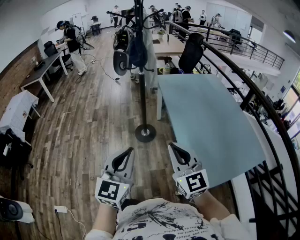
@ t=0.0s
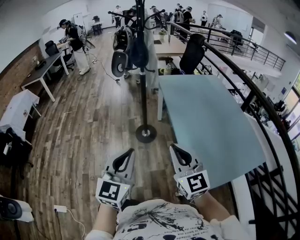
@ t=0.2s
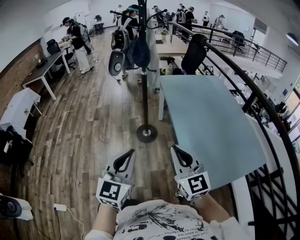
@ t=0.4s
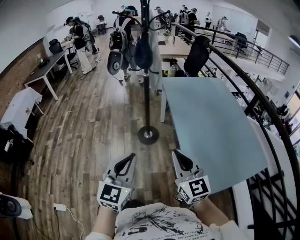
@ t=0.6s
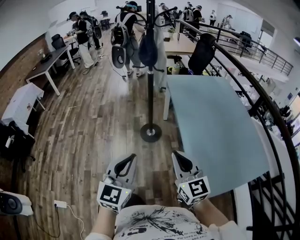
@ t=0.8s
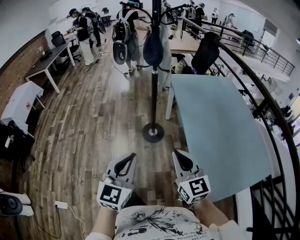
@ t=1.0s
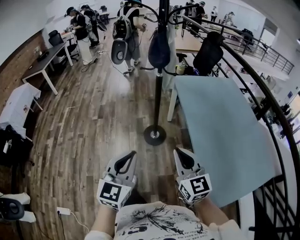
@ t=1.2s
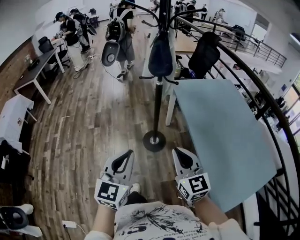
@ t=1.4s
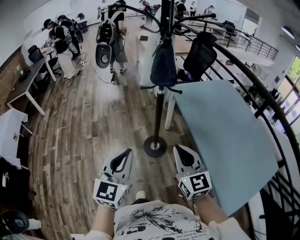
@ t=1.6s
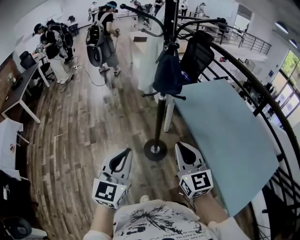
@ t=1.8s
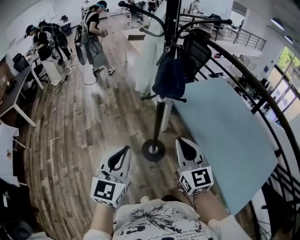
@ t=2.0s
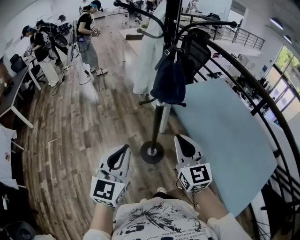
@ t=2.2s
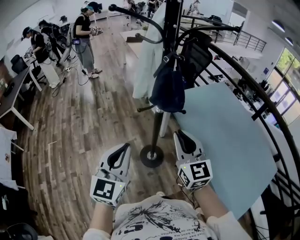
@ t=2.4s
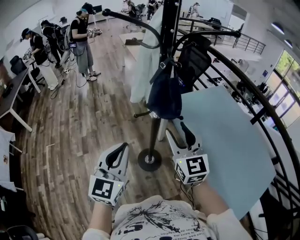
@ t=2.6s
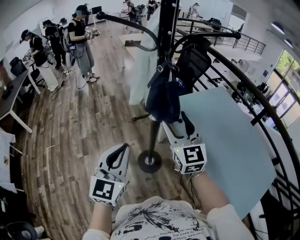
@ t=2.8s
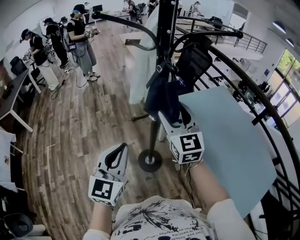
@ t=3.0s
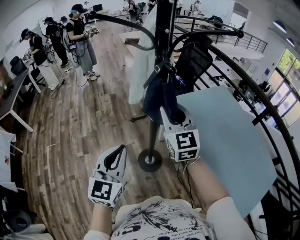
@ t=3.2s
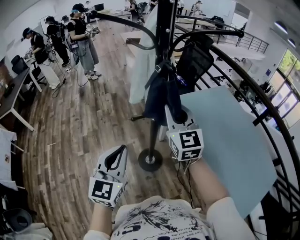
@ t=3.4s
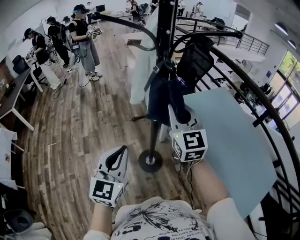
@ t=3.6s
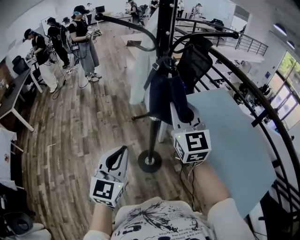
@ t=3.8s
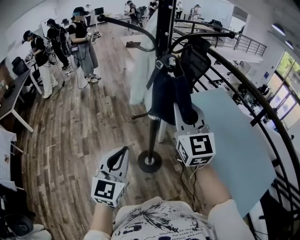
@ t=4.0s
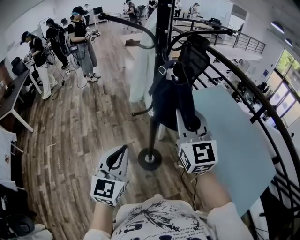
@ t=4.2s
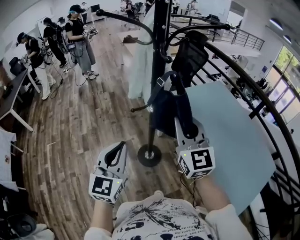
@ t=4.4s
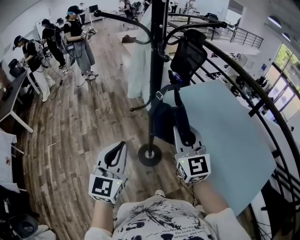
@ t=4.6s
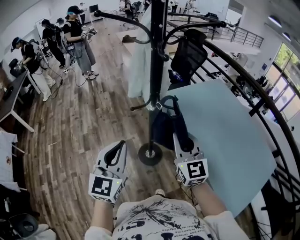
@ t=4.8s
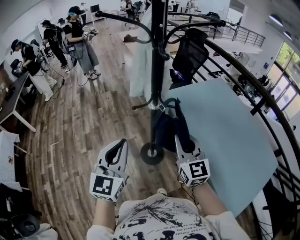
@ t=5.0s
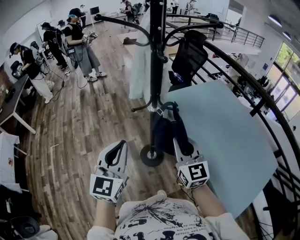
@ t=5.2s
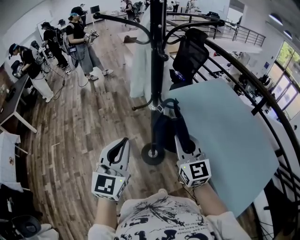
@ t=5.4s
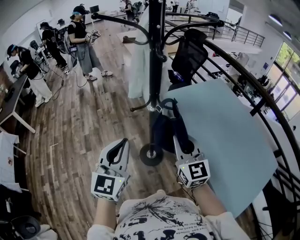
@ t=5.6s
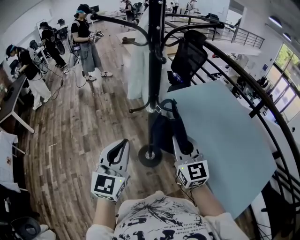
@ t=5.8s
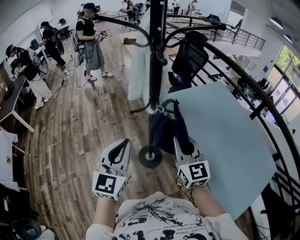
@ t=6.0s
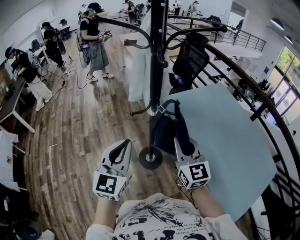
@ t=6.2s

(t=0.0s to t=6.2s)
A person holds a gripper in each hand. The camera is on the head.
t=0.0s - t=1.6s: Both grippers move forward and to the left, approximately 35 cm.
t=1.6s - t=3.2s: The two grippers go some 25 cm forward. The right gripper opens its fingers.
t=3.2s - t=4.6s: The left gripper shifts by about 5 cm. The right gripper shifts some 15 cm backward.
t=4.6s - t=6.2s: The grippers move only a little.

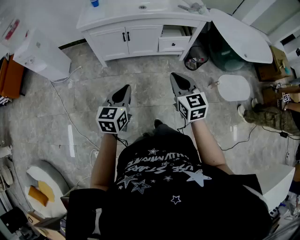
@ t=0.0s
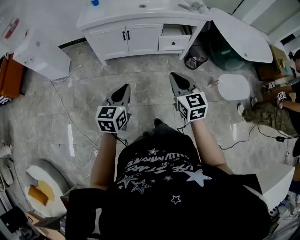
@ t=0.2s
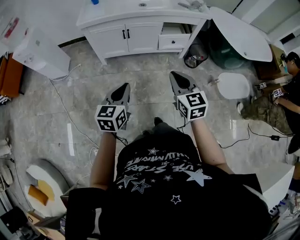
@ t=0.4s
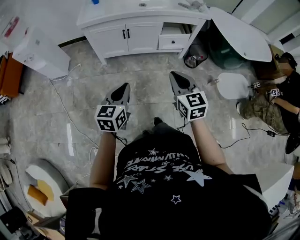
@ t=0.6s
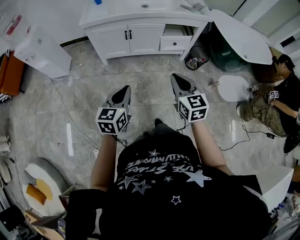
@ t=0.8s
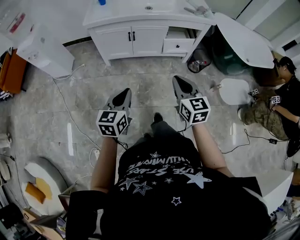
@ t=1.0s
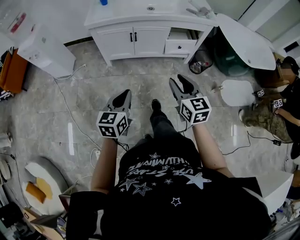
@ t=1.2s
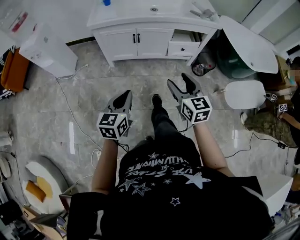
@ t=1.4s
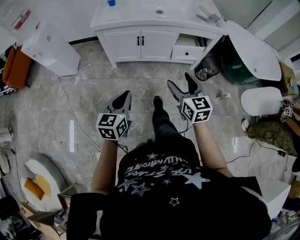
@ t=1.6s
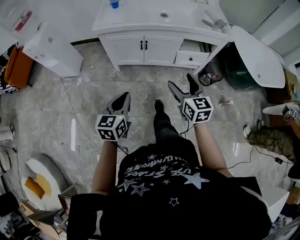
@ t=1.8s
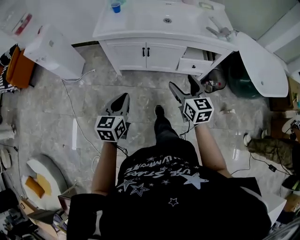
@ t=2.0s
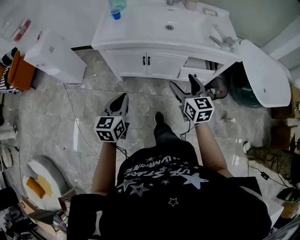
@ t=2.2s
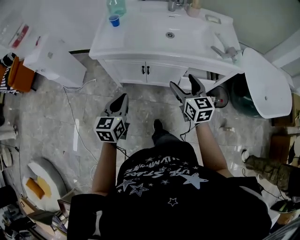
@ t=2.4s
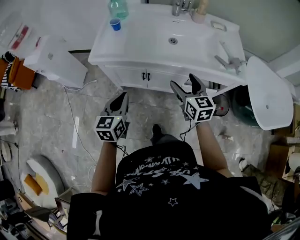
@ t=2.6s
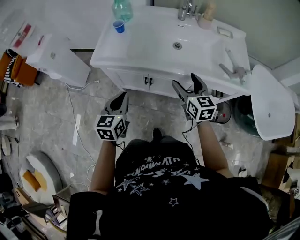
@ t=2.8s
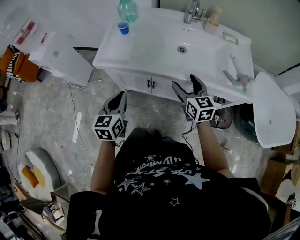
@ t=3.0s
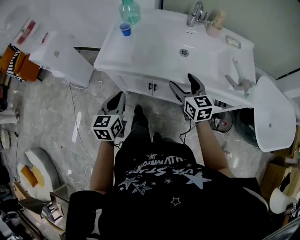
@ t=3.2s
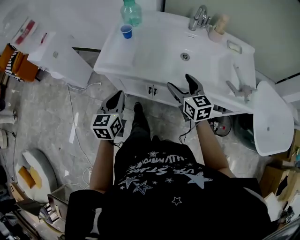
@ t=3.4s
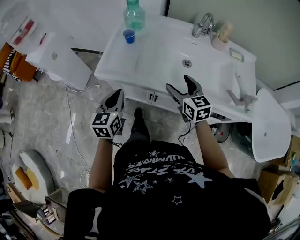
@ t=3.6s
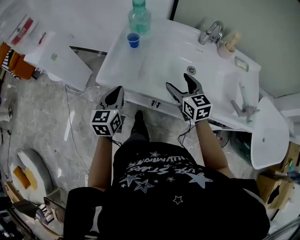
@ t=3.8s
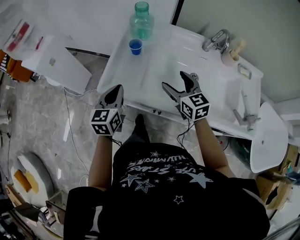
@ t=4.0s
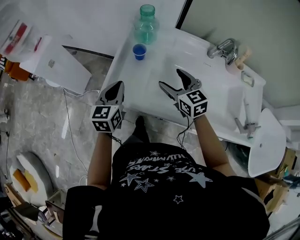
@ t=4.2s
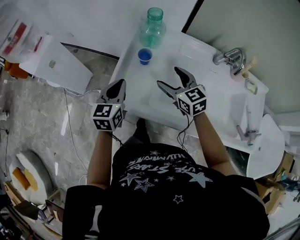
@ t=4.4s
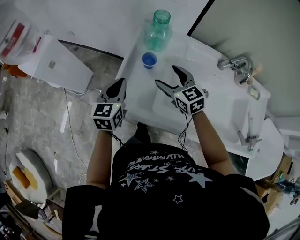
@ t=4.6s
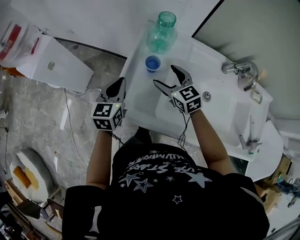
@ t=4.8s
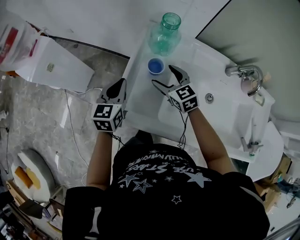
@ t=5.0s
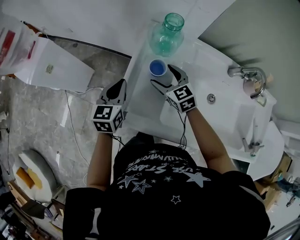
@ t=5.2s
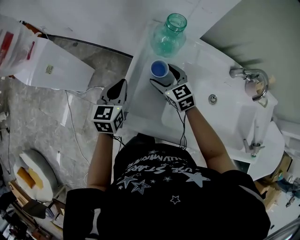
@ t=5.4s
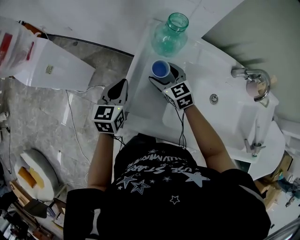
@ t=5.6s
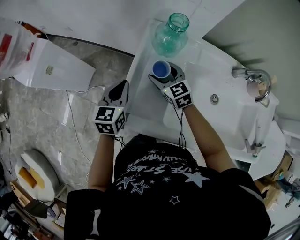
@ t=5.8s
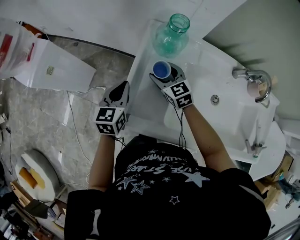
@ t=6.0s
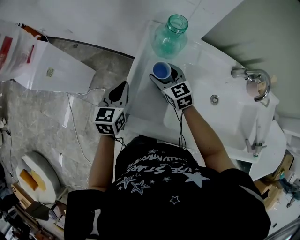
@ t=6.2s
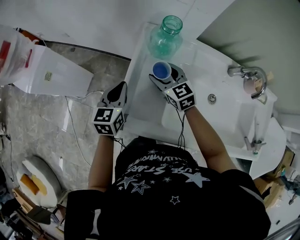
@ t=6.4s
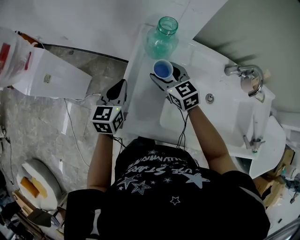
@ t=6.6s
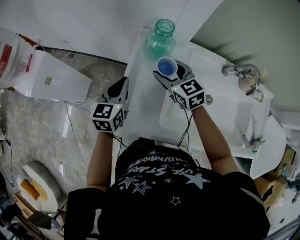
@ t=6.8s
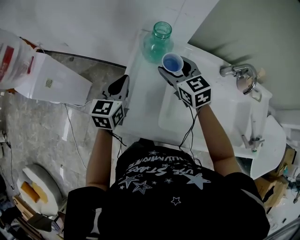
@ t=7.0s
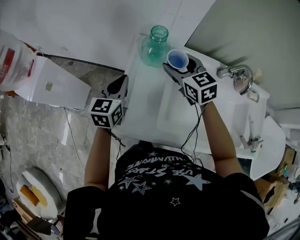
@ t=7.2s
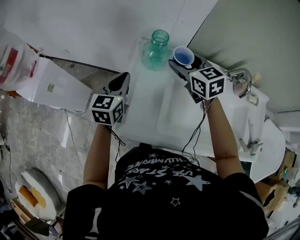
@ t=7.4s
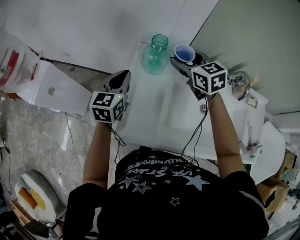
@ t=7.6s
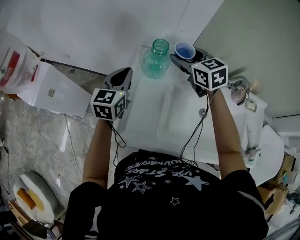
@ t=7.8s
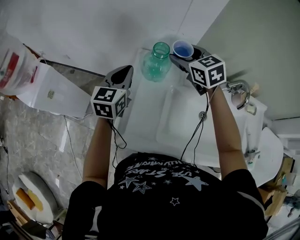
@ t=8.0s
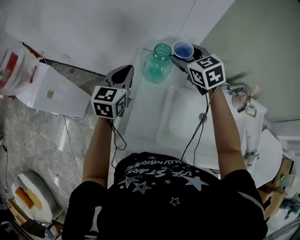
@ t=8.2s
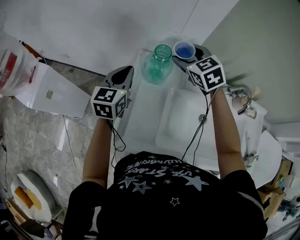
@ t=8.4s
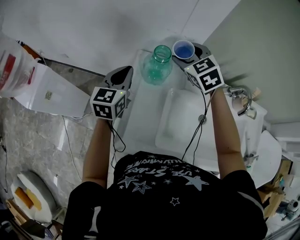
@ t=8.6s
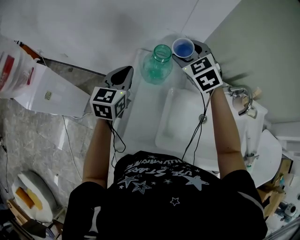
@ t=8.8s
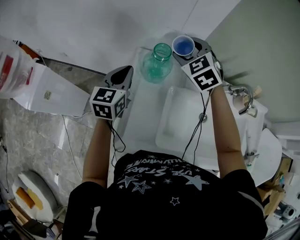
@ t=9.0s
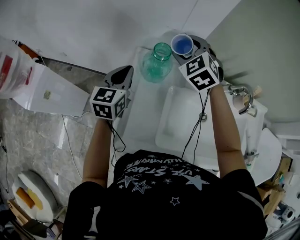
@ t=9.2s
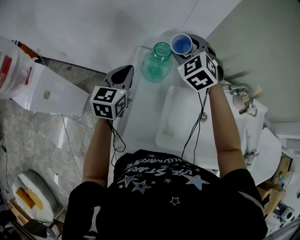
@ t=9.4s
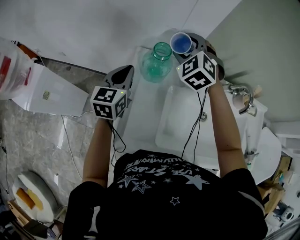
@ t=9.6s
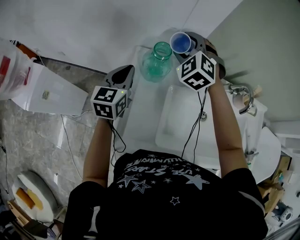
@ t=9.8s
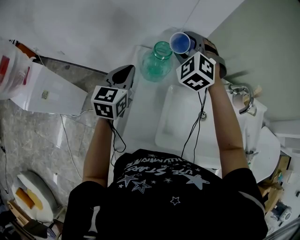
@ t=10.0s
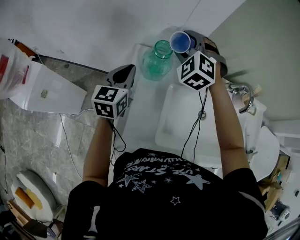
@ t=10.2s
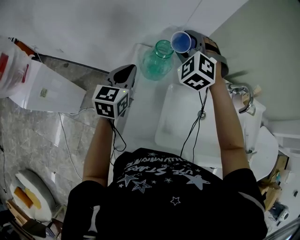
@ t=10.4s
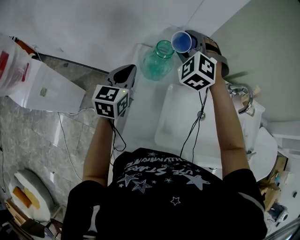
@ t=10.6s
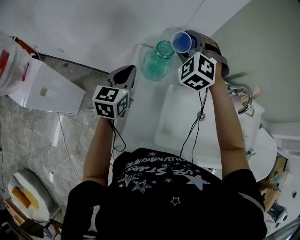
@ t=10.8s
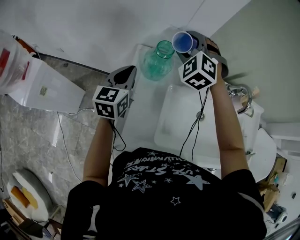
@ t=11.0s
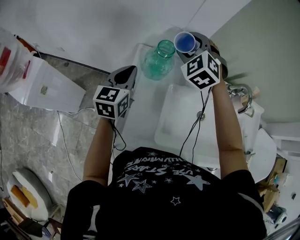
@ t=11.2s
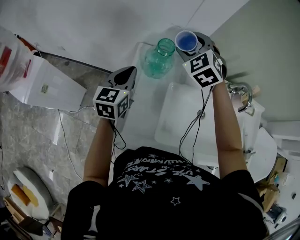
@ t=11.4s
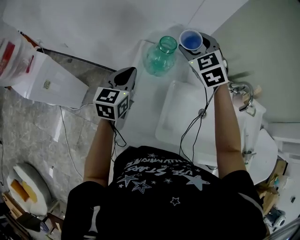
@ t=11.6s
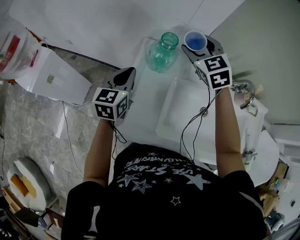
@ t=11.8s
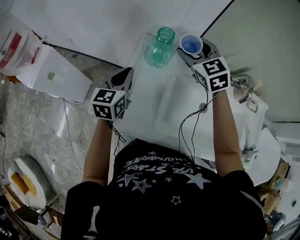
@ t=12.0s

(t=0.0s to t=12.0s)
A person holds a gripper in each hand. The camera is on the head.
t=0.0s - t=1.6s: The right gripper is displaced forward by about 5 cm, and opens. Meanwhile the left gripper moves to the left, approximately 5 cm.
t=1.6s - t=3.0s: Both grippers move forward, some 40 cm.
t=3.0s - t=4.4s: The right gripper goes roughly 35 cm forward and to the left, and swivels some 20 degrees; the left gripper moves forward, approximately 30 cm.
t=4.4s - t=6.0s: The right gripper heads forward, downward and to the left, covering approximately 20 cm. Meanwhile the left gripper shifts approximately 10 cm forward and downward.
t=6.0s - t=7.6s: The left gripper shifts approximately 15 cm upward, forward and to the right. Meanwhile the right gripper shifts approximately 25 cm upward and to the right.
t=7.6s - t=9.0s: Both grippers travel together forward, approximately 5 cm. The right gripper changes its angle by approximately 30 degrees.
t=9.0s - t=10.4s: The right gripper swivels approximately 30 degrees.
t=10.4s - t=12.0s: The two grippers go approximately 10 cm backward. The right gripper swivels about 40 degrees.

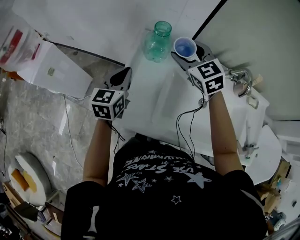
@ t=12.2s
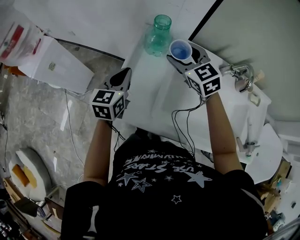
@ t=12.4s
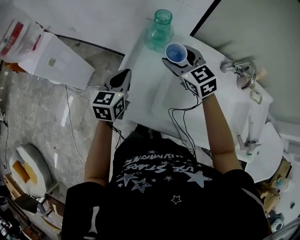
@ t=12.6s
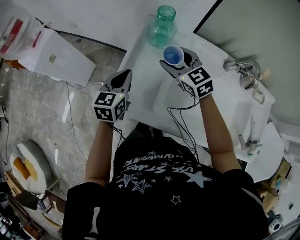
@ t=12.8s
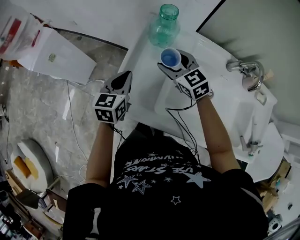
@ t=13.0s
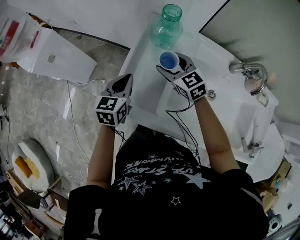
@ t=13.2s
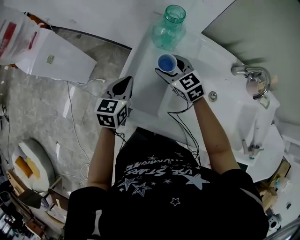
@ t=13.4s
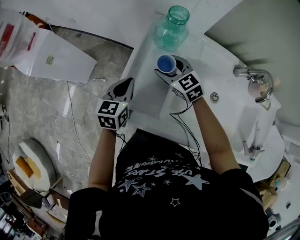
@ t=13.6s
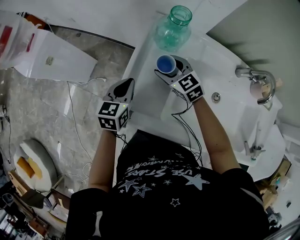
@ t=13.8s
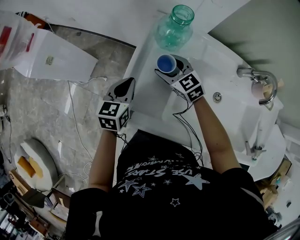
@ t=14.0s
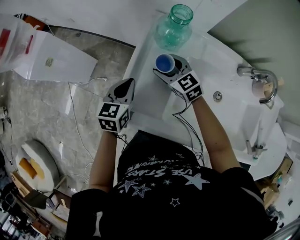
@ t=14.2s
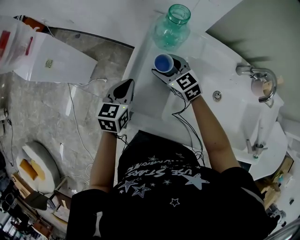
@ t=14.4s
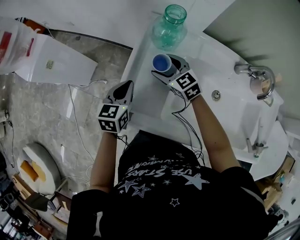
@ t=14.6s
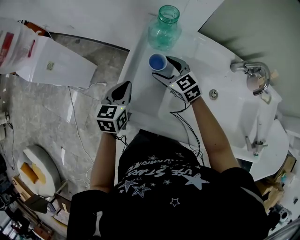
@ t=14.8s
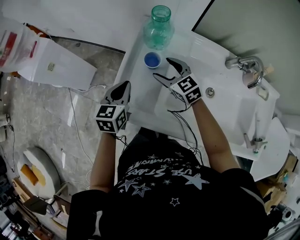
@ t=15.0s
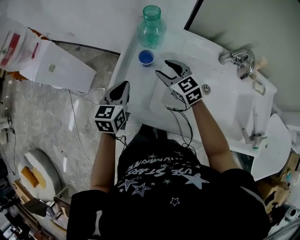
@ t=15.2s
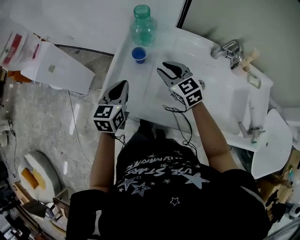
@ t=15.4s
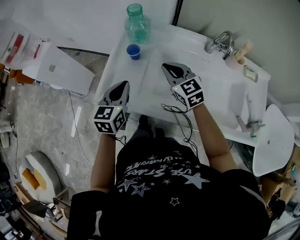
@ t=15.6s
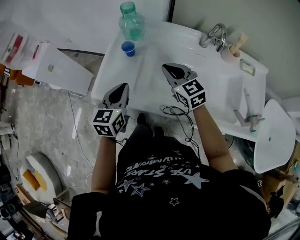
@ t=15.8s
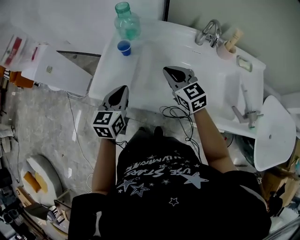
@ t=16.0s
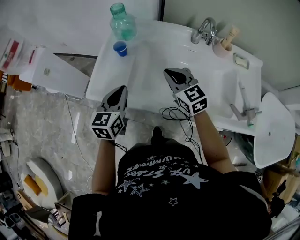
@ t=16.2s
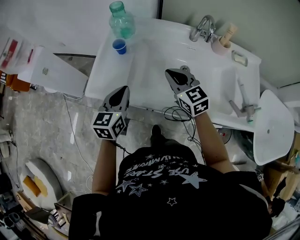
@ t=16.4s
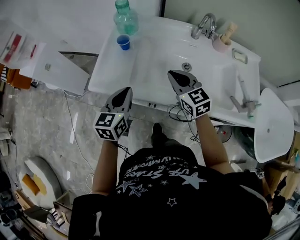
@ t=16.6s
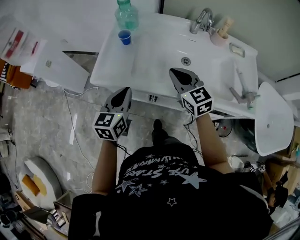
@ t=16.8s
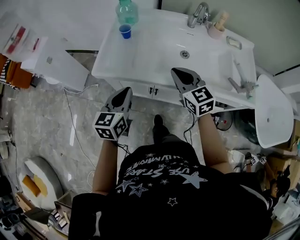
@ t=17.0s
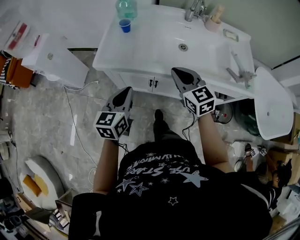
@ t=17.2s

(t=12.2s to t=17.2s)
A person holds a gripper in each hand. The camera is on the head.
t=12.2s - t=13.8s: The right gripper travels downward and to the left by roughly 20 cm. The left gripper moves downward, approximately 10 cm.
t=13.8s - t=15.6s: The left gripper shifts about 15 cm backward, upward and to the right. The right gripper goes some 20 cm backward, to the right and upward, and closes up.
t=15.6s - t=17.2s: The two grippers go about 25 cm backward.
